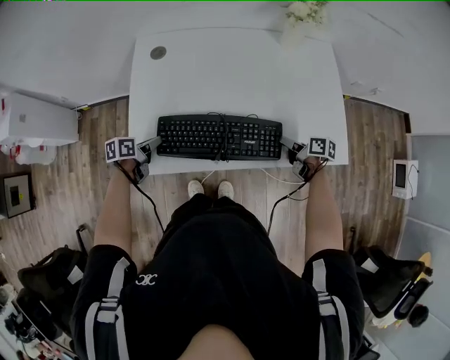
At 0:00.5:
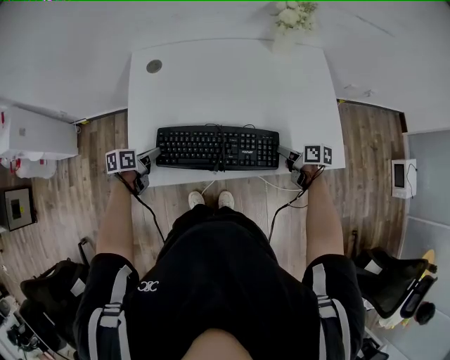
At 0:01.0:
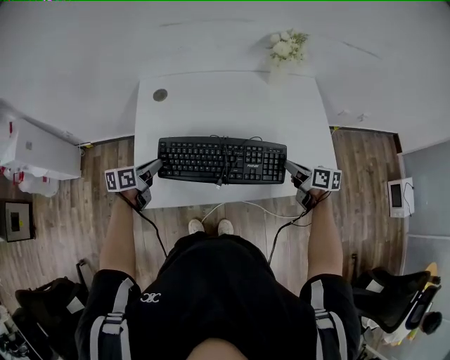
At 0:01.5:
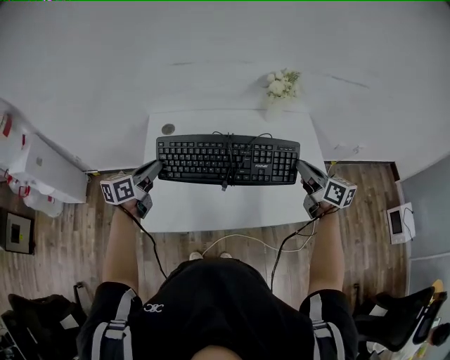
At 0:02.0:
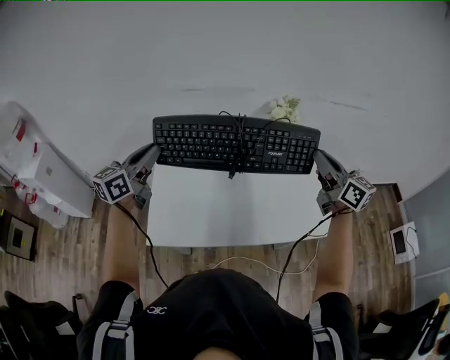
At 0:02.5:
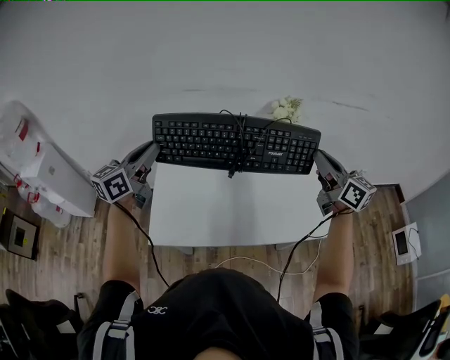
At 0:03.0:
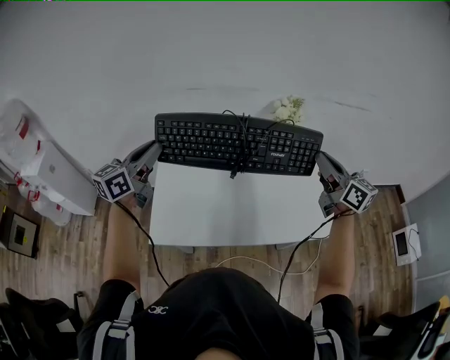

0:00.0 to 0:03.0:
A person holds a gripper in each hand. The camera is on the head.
0:00.0 to 0:01.5: The grippers both shift upward by roughly 25 cm. The left gripper turns by roughly 40 degrees. The right gripper rotates approximately 40 degrees.
0:01.5 to 0:03.0: The grippers both shift upward by about 15 cm. The left gripper changes its angle by about 20 degrees.

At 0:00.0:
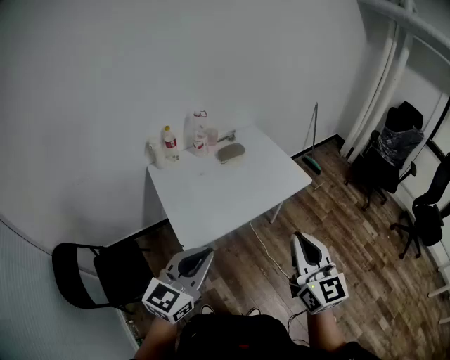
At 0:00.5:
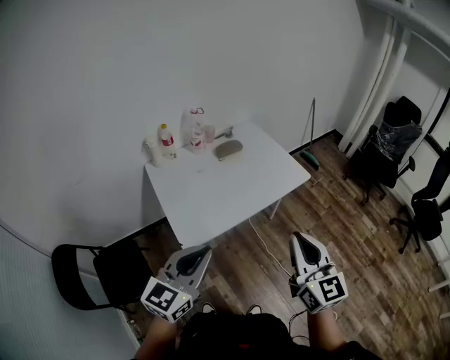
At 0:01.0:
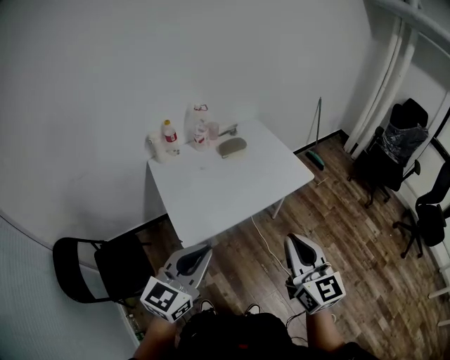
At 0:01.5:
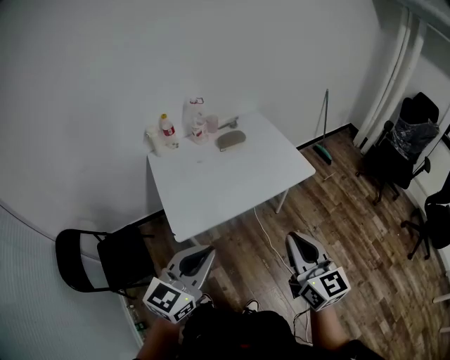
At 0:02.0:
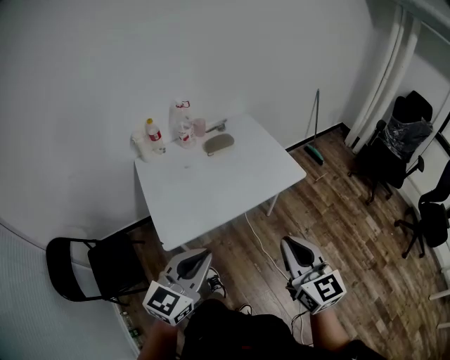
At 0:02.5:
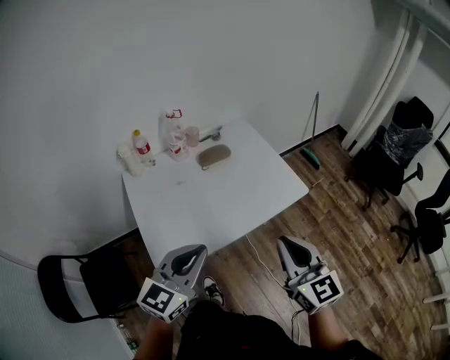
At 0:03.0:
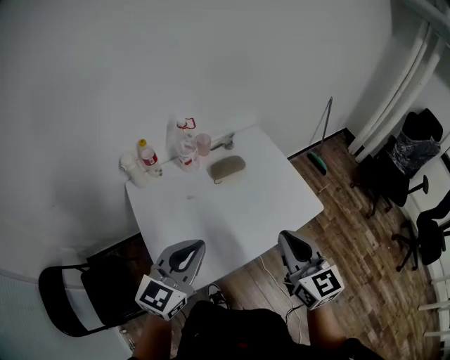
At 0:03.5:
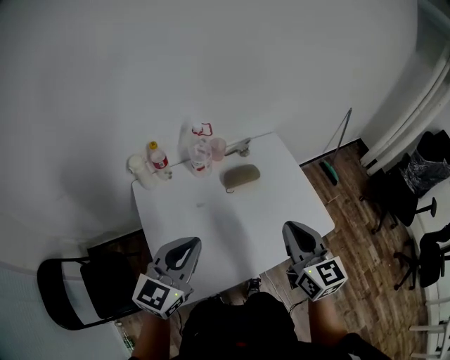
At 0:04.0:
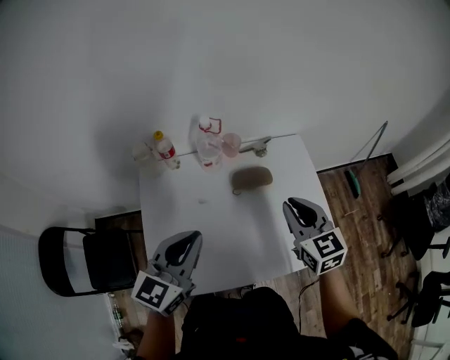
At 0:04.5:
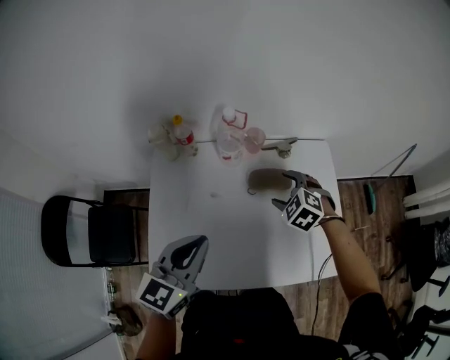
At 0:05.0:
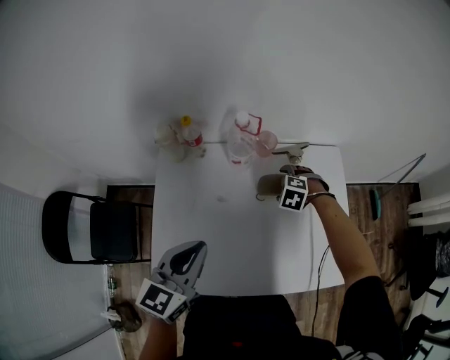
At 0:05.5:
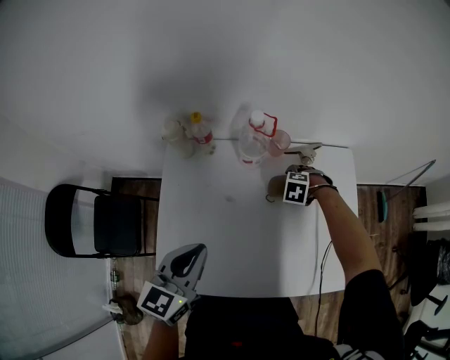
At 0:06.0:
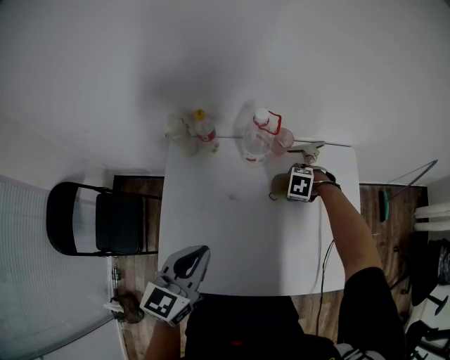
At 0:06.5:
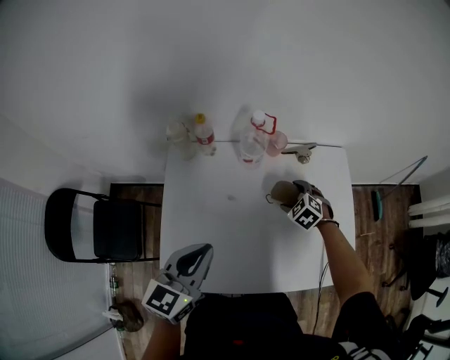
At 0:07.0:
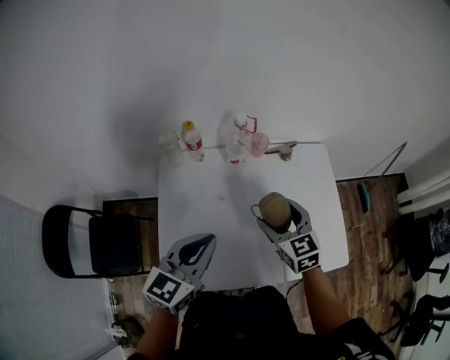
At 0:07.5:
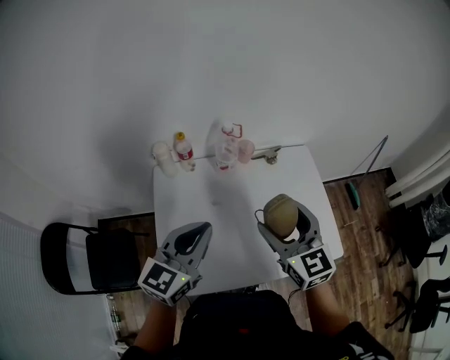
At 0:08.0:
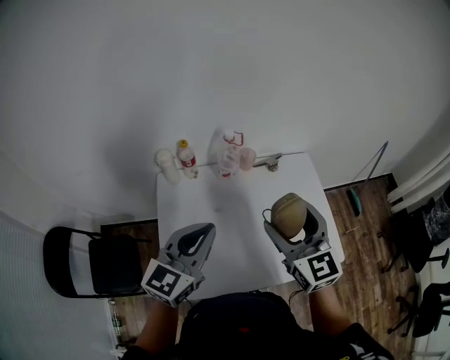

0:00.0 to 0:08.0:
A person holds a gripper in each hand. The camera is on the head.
0:00.0 to 0:02.0: The right gripper travels to the right, downward and forward by approximately 10 cm. The left gripper travels to the right and forward by approximately 10 cm.
0:02.0 to 0:04.0: The two grippers travel together, forward, about 50 cm. The right gripper swivels roughly 30 degrees. The left gripper rotates approximately 20 degrees.
0:04.0 to 0:06.0: The left gripper shifts about 10 cm downward, and turns by roughly 20 degrees. The right gripper goes roughly 30 cm downward, points its fingers approximately 60 degrees further downward, and opens its fingers.
0:06.0 to 0:08.0: The right gripper travels upward by approximately 40 cm, and tilts its fingers approximately 80 degrees upward. The left gripper goes about 10 cm upward, and changes its angle by roughly 30 degrees.

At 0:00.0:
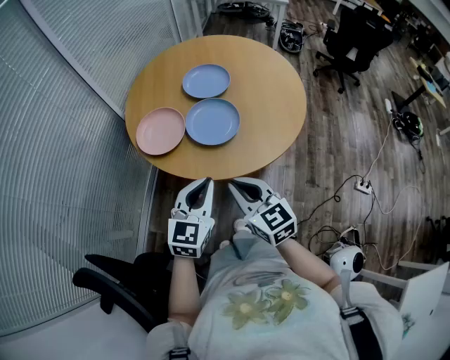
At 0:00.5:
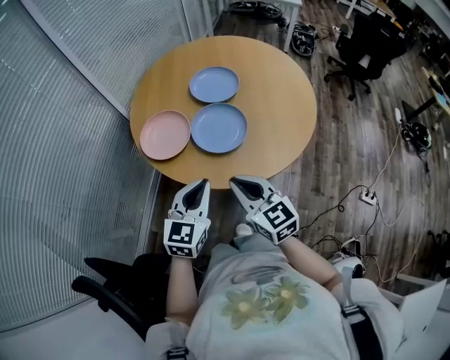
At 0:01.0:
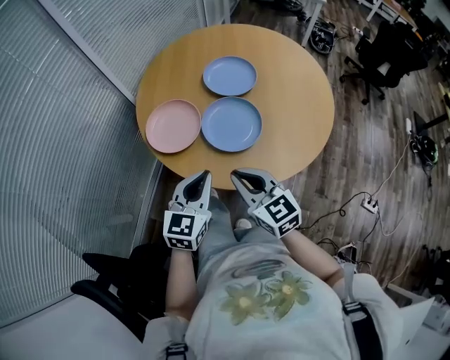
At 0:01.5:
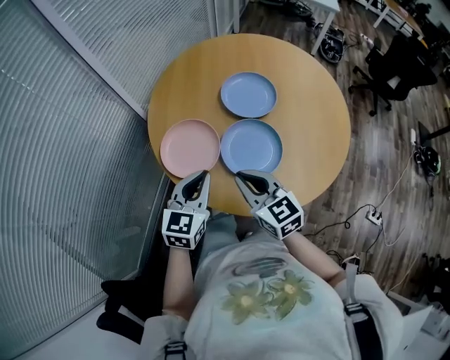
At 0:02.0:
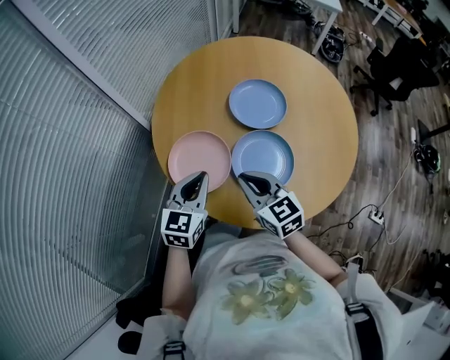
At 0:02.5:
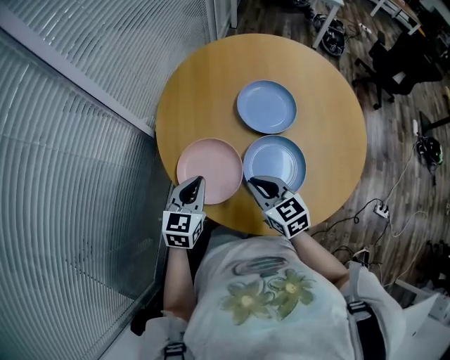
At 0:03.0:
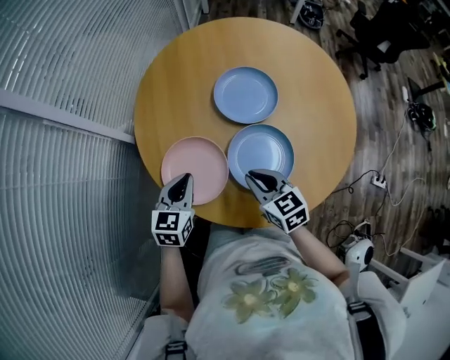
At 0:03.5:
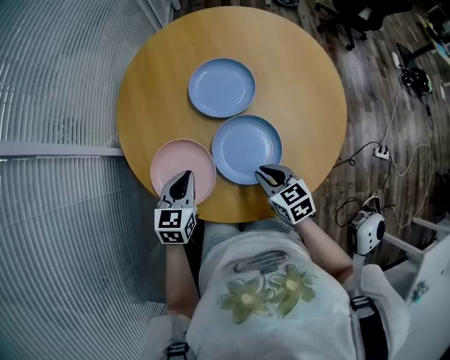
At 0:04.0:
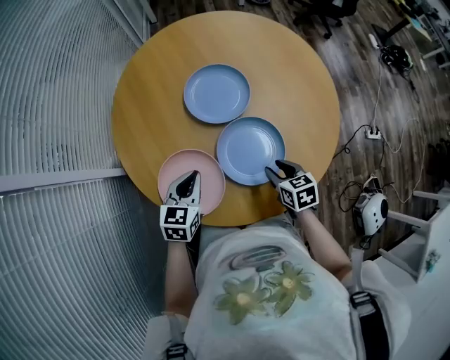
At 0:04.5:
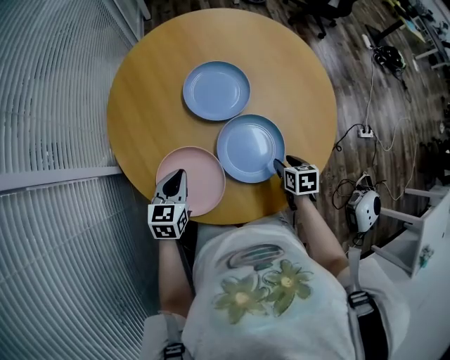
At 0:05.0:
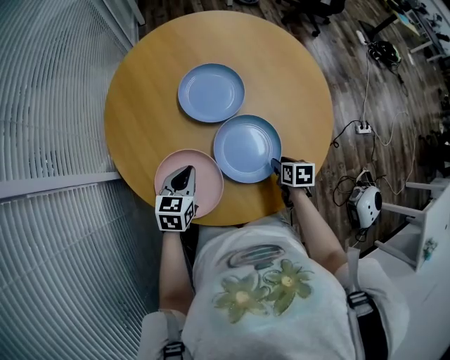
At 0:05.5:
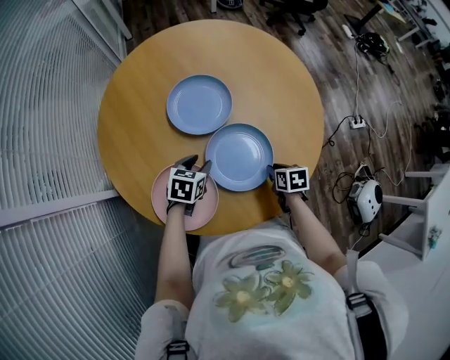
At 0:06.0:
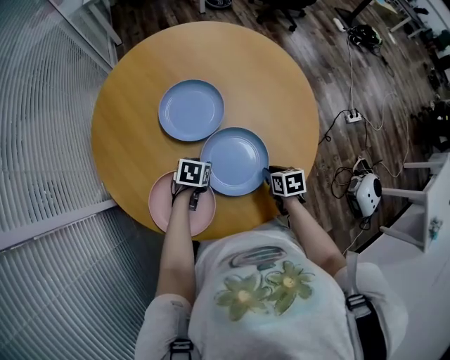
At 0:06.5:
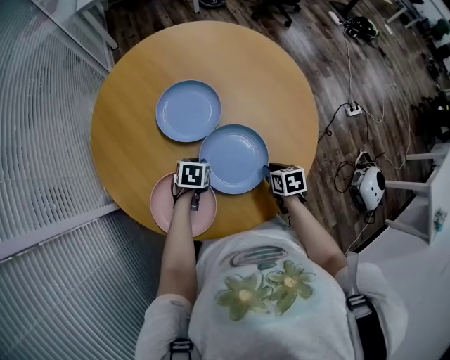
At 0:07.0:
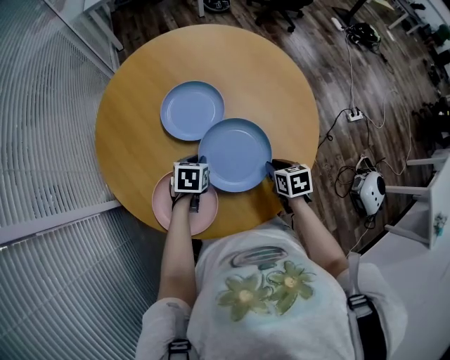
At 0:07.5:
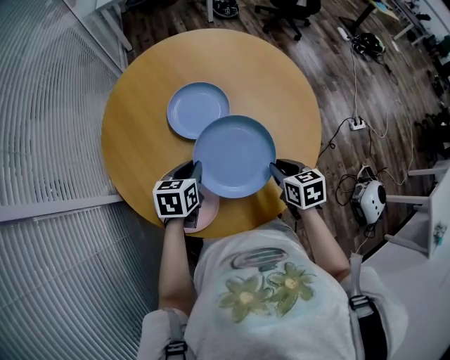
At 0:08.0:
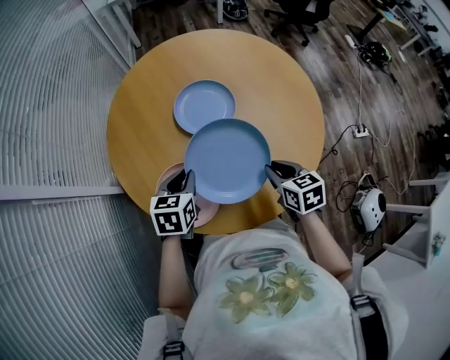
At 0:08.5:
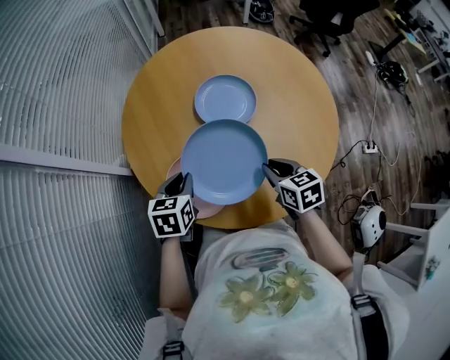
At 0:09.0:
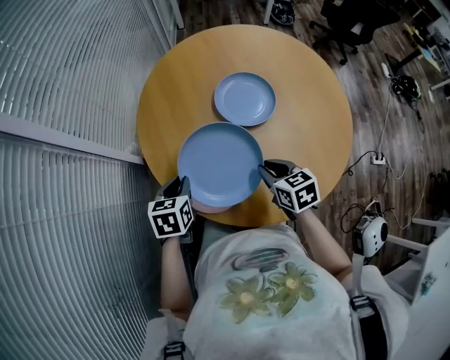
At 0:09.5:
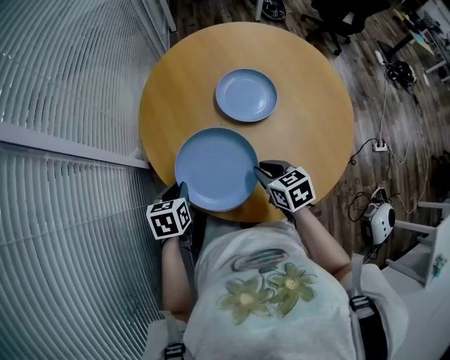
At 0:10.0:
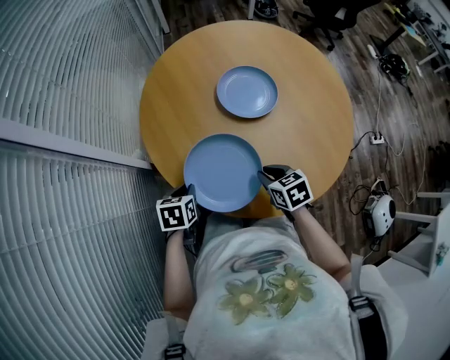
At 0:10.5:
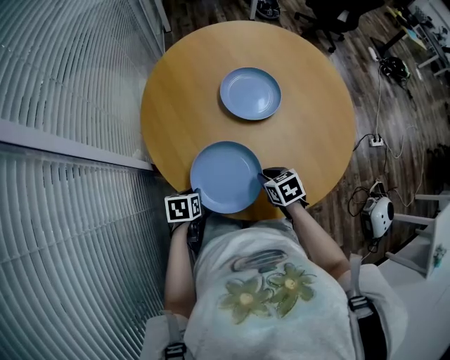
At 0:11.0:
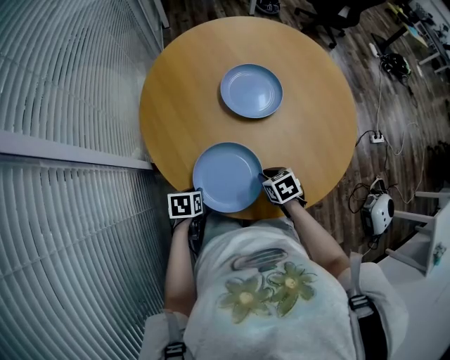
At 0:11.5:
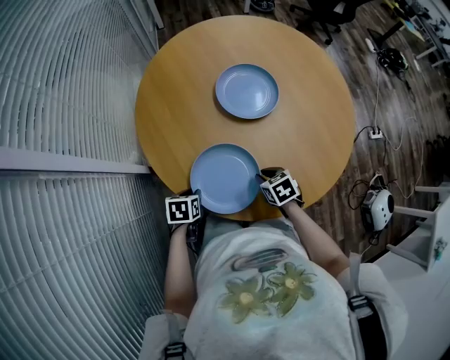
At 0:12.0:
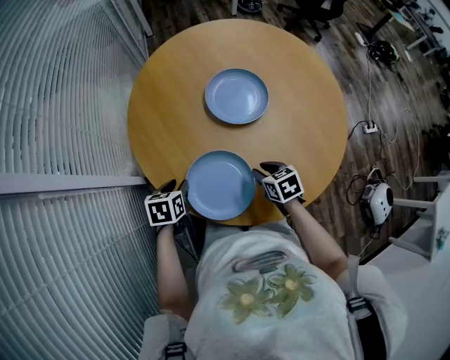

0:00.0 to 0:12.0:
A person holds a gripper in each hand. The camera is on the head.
0:00.0 to 0:02.0: Both grippers are carried forward, roughly 40 cm.
0:02.0 to 0:04.0: The left gripper shifts by some 15 cm, and swivels about 30 degrees; the right gripper shifts approximately 15 cm downward, swivels some 50 degrees, and opens.
0:04.0 to 0:06.0: The right gripper shifts roughly 10 cm downward and to the right, and changes its angle by some 20 degrees. Meanwhile the left gripper goes some 20 cm downward, forward and to the right, turns by approximately 40 degrees, and opens its fingers.
0:06.0 to 0:08.0: The left gripper heads upward and backward, covering some 20 cm, changes its angle by roughly 30 degrees, and closes up, while the right gripper travels upward by approximately 15 cm, and rotates roughly 20 degrees.
0:08.0 to 0:10.0: Both grippers move to the left, some 25 cm.
0:10.0 to 0:12.0: The right gripper heads forward and downward, covering approximately 10 cm, while the left gripper shifts some 10 cm forward, and opens.

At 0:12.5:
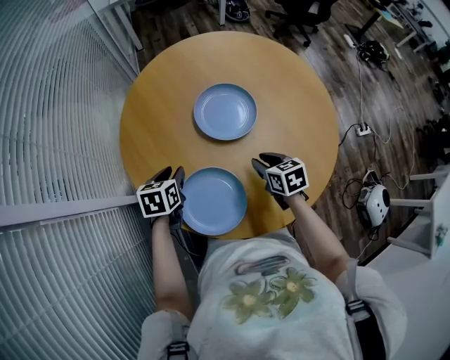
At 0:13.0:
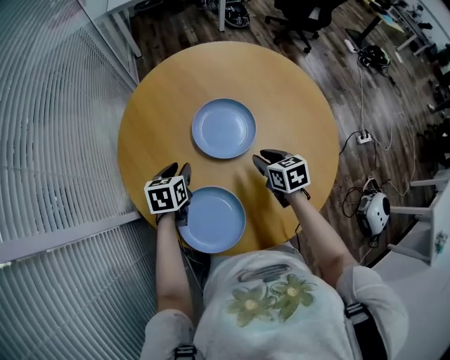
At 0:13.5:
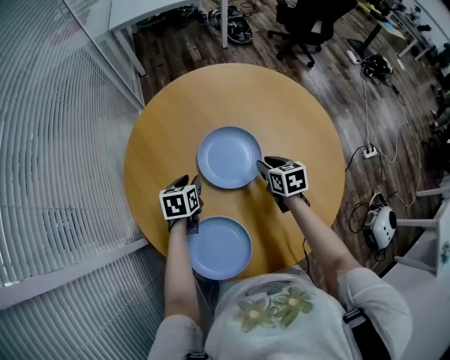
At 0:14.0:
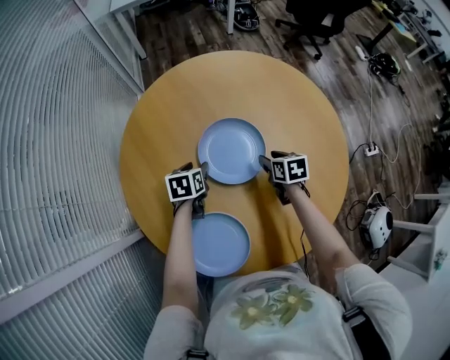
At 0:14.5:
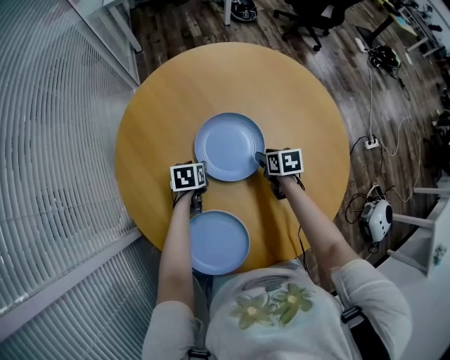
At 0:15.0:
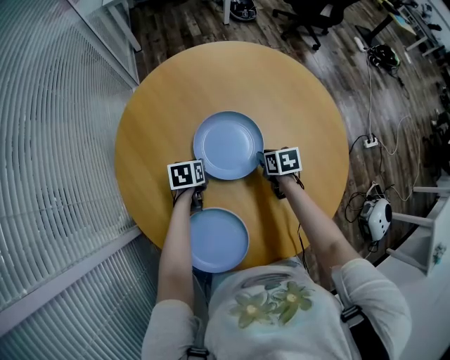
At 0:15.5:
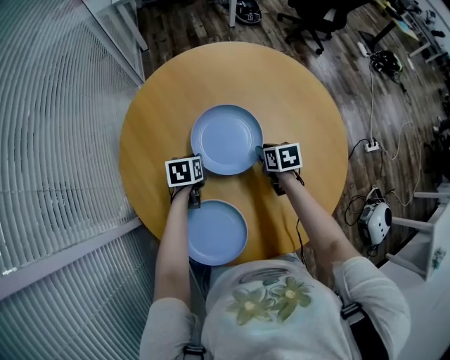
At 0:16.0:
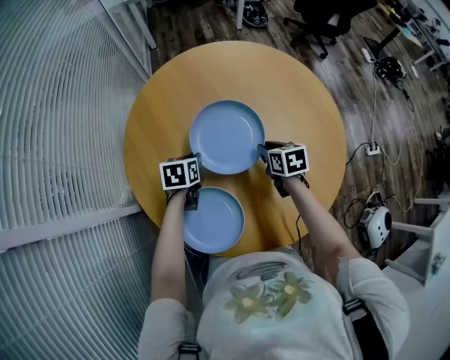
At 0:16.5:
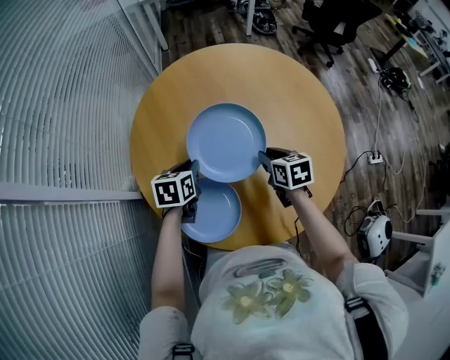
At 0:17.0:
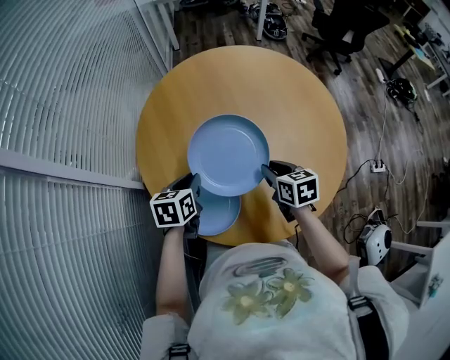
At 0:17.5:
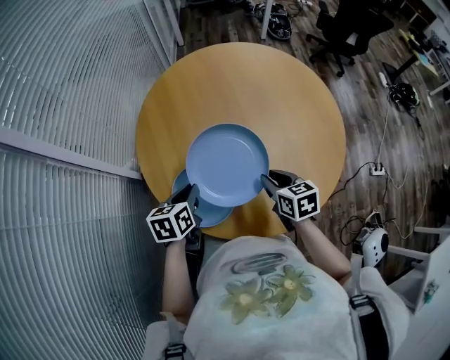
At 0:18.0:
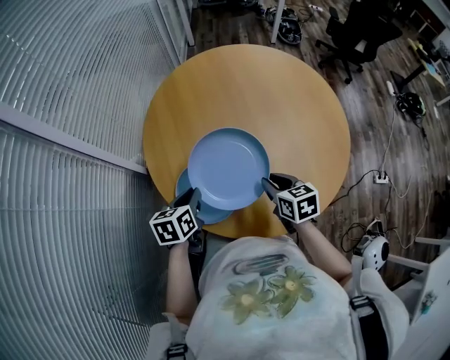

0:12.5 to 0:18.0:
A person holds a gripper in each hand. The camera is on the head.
0:12.5 to 0:14.5: The left gripper goes roughly 30 cm forward, downward and to the right. Meanwhile the right gripper heads forward and downward, covering roughly 25 cm.
0:14.5 to 0:16.0: The two grippers go approximately 15 cm upward and backward. The left gripper closes its fingers.
0:16.0 to 0:18.0: The grippers both shift backward by roughly 25 cm. The left gripper swivels about 20 degrees.
